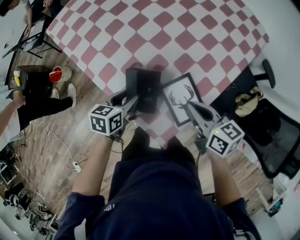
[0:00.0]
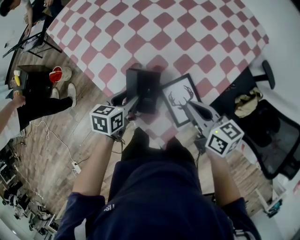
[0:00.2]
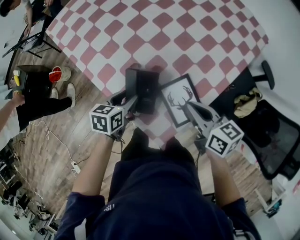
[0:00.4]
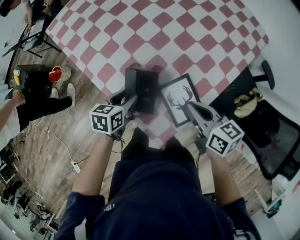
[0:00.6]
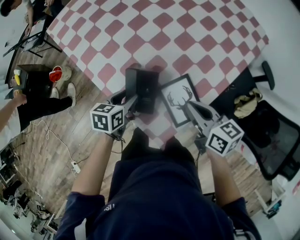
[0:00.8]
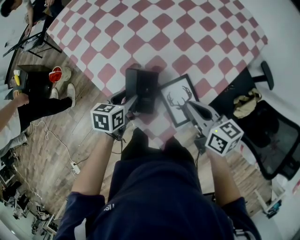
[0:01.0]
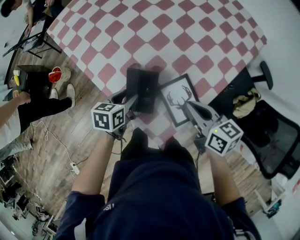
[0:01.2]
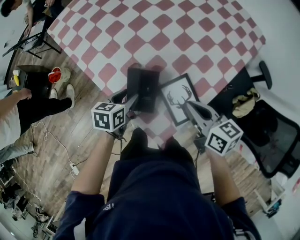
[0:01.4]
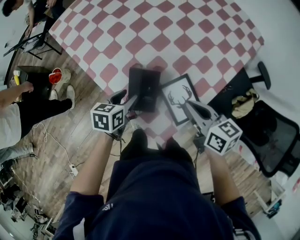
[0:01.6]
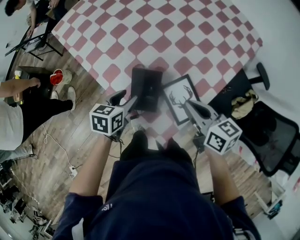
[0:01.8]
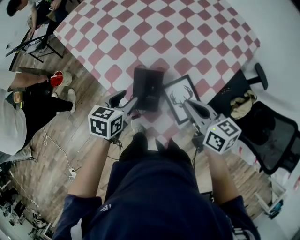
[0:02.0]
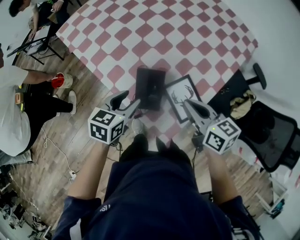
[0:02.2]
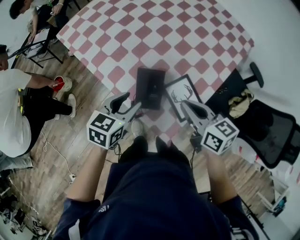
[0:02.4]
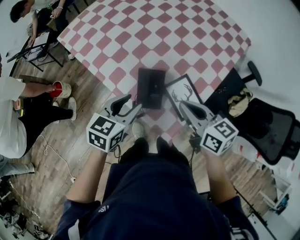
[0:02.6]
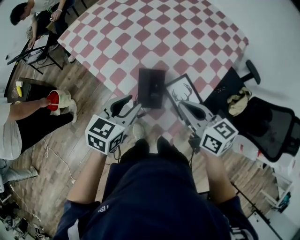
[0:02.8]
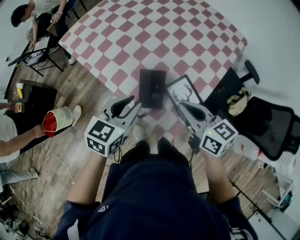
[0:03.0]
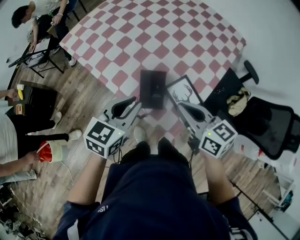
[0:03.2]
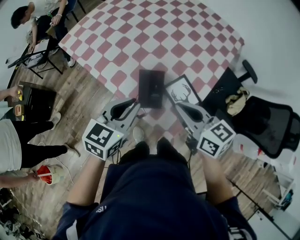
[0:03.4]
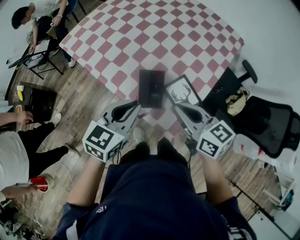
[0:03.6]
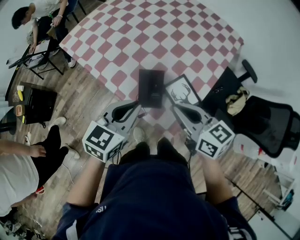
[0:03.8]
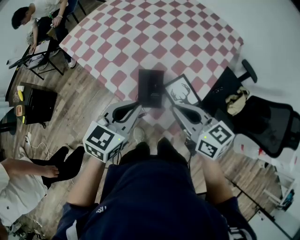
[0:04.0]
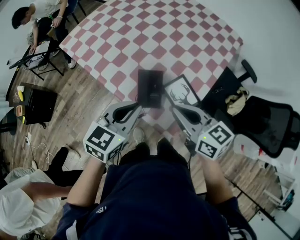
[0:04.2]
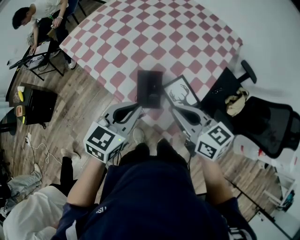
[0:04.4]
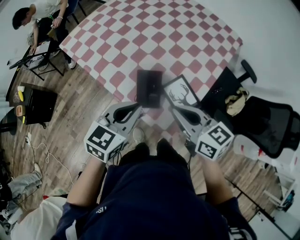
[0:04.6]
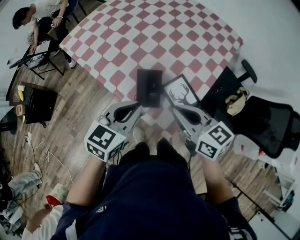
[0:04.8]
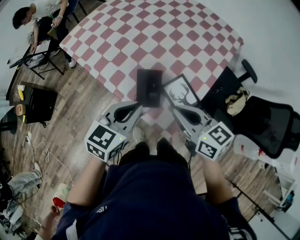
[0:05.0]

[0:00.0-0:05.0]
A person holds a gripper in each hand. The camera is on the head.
0.0 to 1.6 s: There are only small adjustments of the grippers.
1.6 to 3.4 s: The right gripper is displaced upward, to the left and backward by approximately 15 cm, while the left gripper is displaced upward by about 20 cm, turns by approximately 40 degrees, and closes its fingers.
3.4 to 5.0 s: The grippers stay close to where they were, moving slightly.

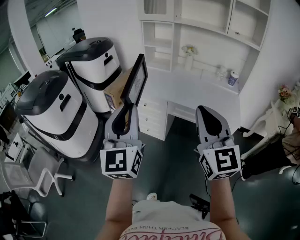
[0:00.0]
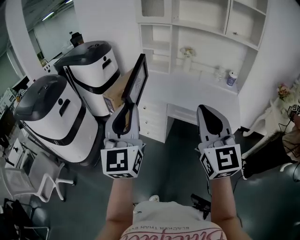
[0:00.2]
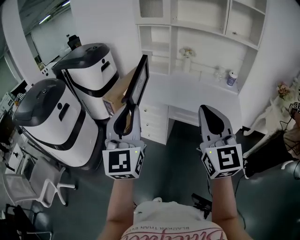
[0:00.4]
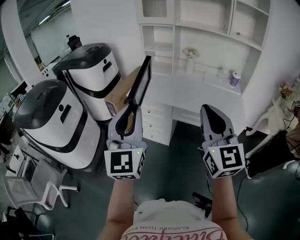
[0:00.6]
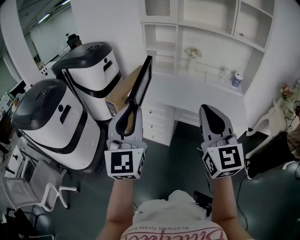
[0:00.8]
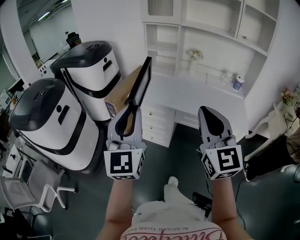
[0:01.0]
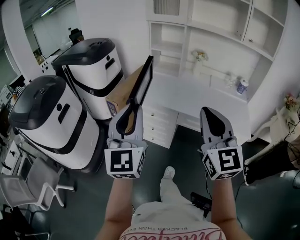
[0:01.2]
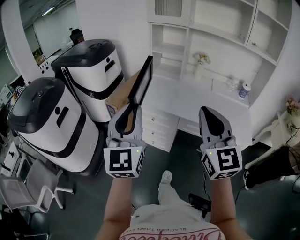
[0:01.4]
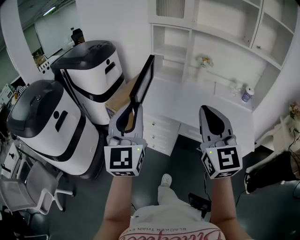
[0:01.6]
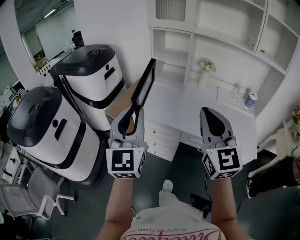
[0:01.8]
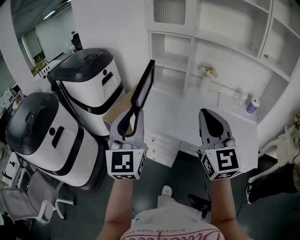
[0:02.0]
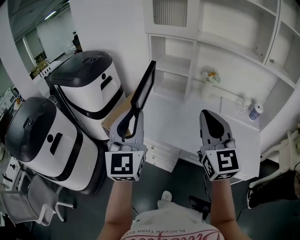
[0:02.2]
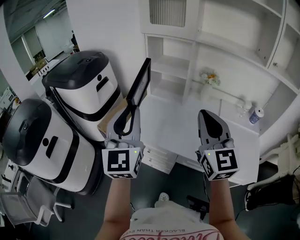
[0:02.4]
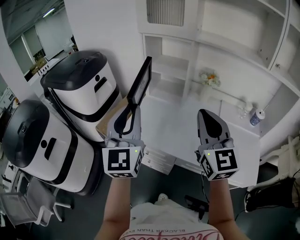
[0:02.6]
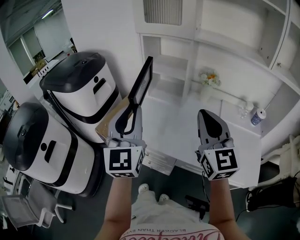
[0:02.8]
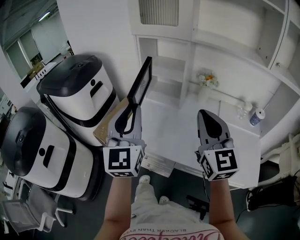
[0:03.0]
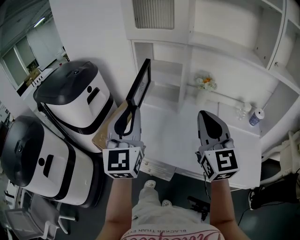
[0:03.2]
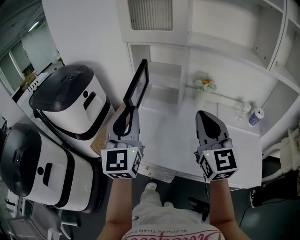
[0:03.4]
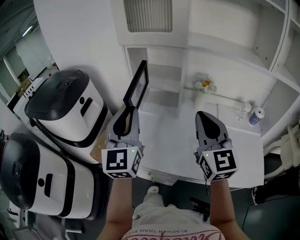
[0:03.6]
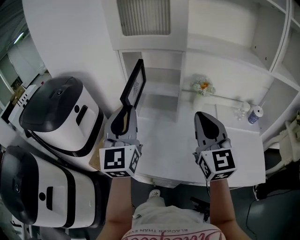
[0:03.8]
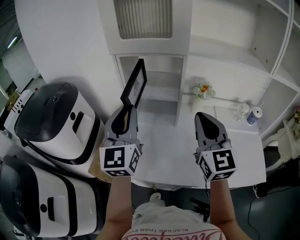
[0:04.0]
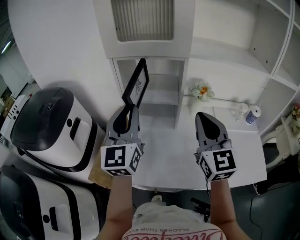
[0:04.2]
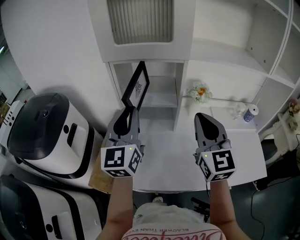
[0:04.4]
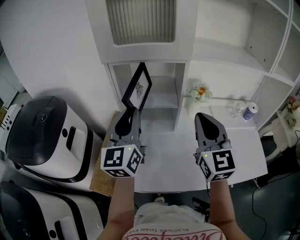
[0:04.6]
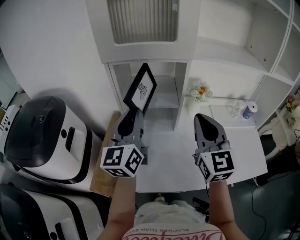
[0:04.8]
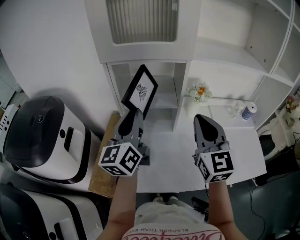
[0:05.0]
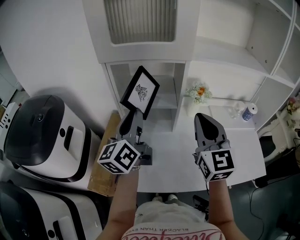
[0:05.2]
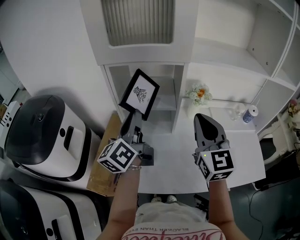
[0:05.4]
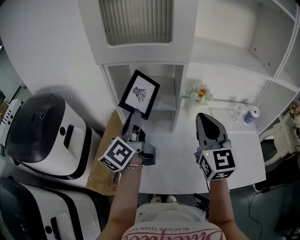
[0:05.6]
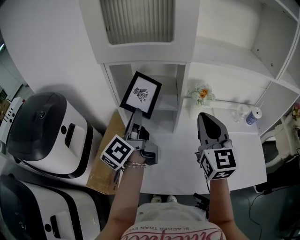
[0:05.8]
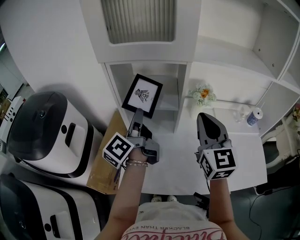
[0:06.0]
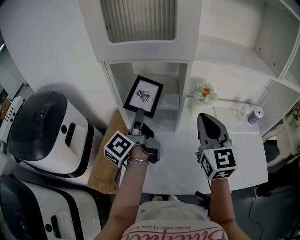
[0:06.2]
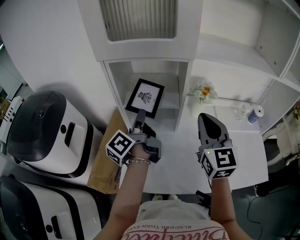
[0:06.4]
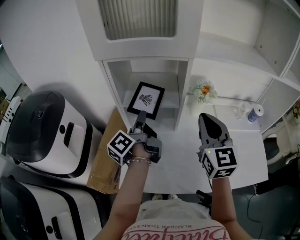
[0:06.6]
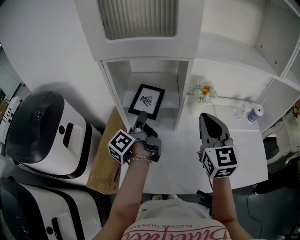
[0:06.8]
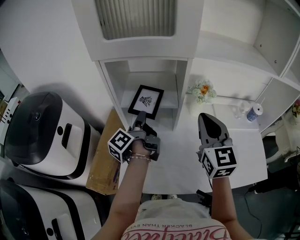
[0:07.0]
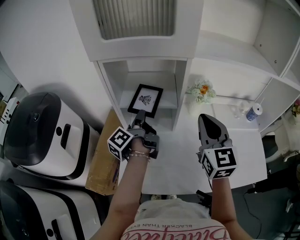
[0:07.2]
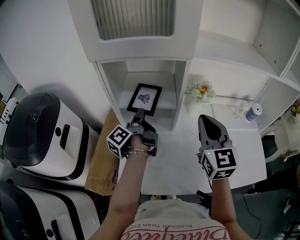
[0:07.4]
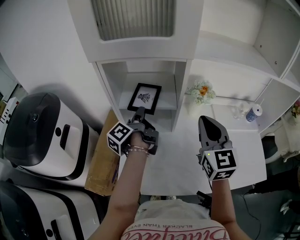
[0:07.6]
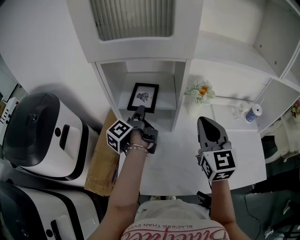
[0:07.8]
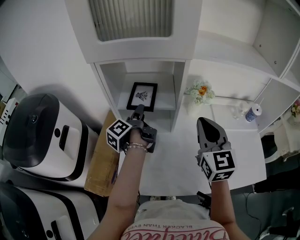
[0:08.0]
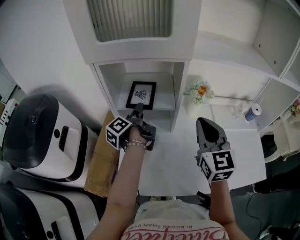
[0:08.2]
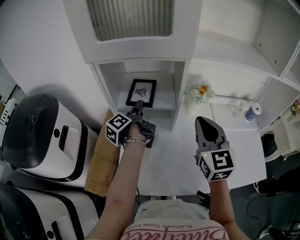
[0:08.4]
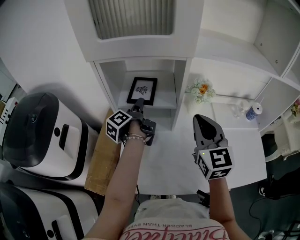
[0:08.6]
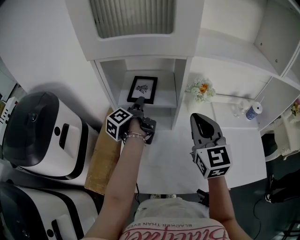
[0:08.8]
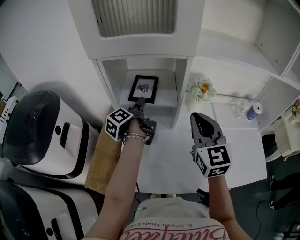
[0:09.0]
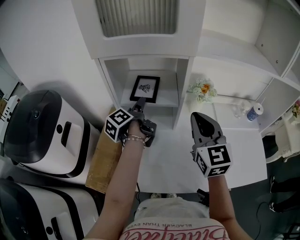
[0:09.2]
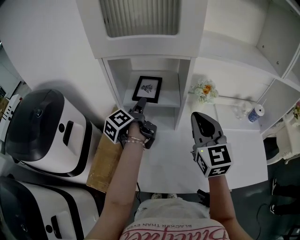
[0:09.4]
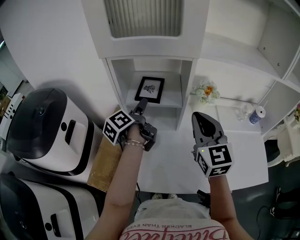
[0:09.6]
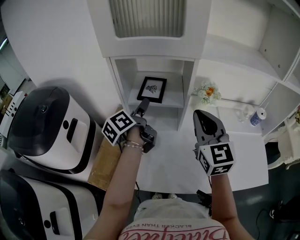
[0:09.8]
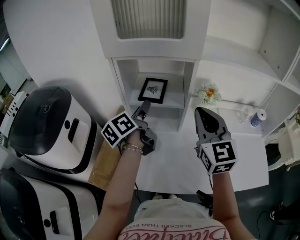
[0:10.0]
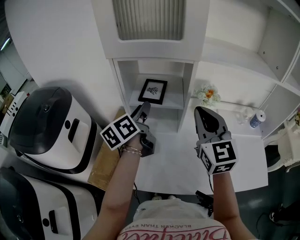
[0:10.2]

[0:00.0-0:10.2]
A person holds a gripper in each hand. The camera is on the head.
0.0 to 1.4 s: Both grippers move forward and to the left, roughly 15 cm.
1.4 to 3.0 s: Both grippers move forward, approximately 30 cm.
3.0 to 4.4 s: The two grippers go about 20 cm forward. The left gripper swivels about 20 degrees.
4.4 to 5.8 s: The right gripper moves roughly 5 cm, while the left gripper shifts approximately 10 cm downward and forward, and rolls counterclockwise, seen from behind, by about 60 degrees.
5.8 to 7.2 s: The left gripper goes approximately 10 cm downward and forward, and rotates about 30 degrees.
7.2 to 8.8 s: The left gripper heads forward, covering approximately 5 cm, and opens.
8.8 to 10.2 s: The left gripper heads upward and backward, covering approximately 15 cm, turns by approximately 40 degrees, and closes its fingers, while the right gripper heads upward, covering about 5 cm.

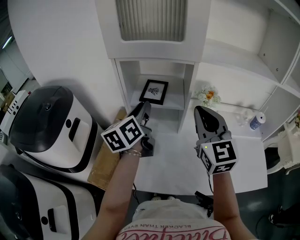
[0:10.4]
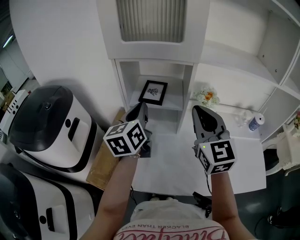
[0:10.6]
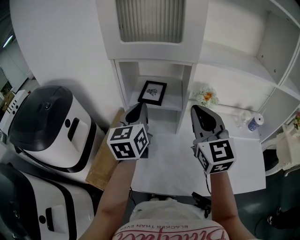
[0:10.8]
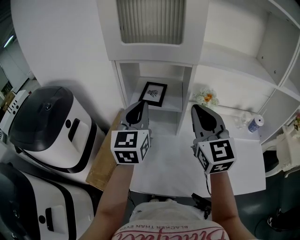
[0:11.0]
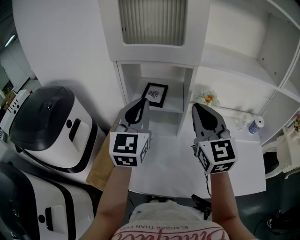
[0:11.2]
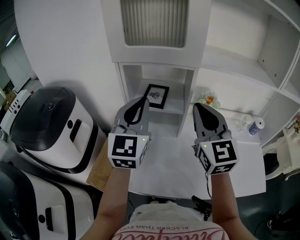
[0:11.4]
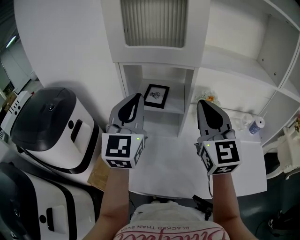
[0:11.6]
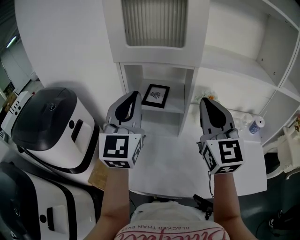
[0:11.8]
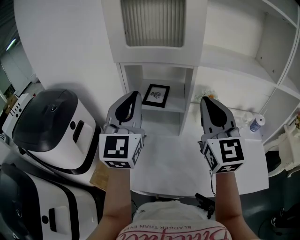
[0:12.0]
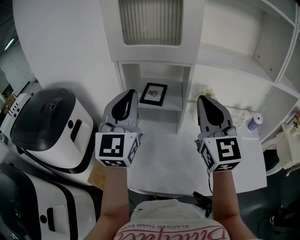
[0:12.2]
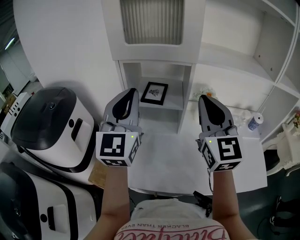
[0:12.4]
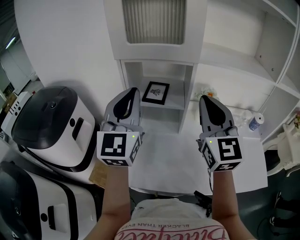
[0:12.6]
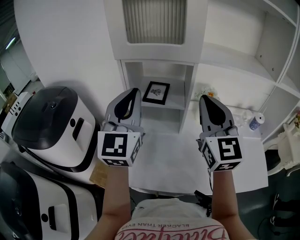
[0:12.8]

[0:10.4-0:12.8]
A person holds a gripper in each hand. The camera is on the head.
10.4 to 11.6 s: The left gripper shifts about 15 cm upward and backward, and twists some 50 degrees clockwise, seen from behind. The right gripper is displaced upward by approximately 5 cm.
11.6 to 12.8 s: The grippers stay close to where they were, moving slightly.

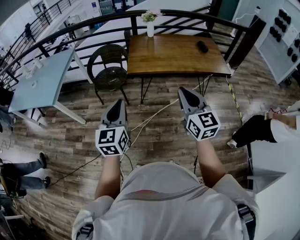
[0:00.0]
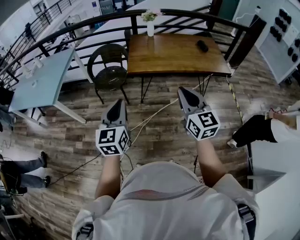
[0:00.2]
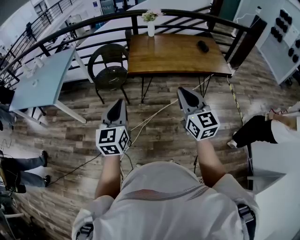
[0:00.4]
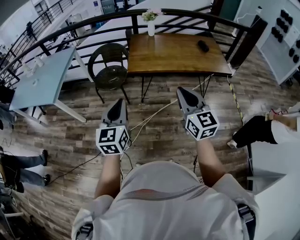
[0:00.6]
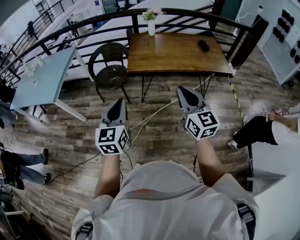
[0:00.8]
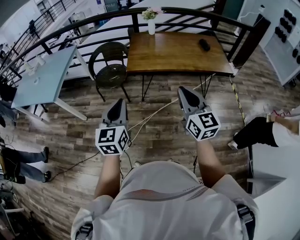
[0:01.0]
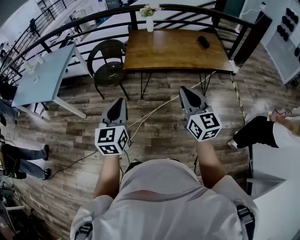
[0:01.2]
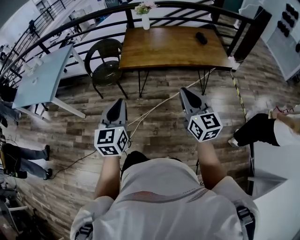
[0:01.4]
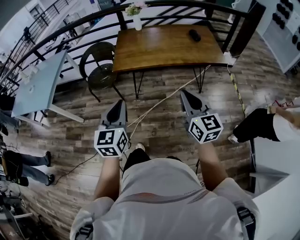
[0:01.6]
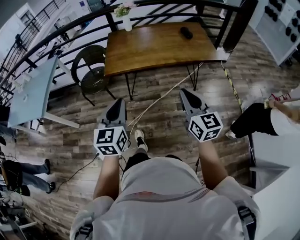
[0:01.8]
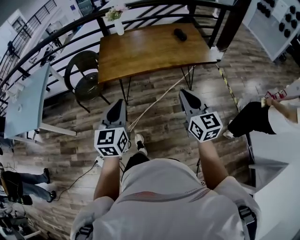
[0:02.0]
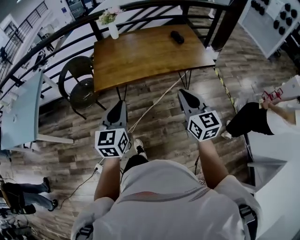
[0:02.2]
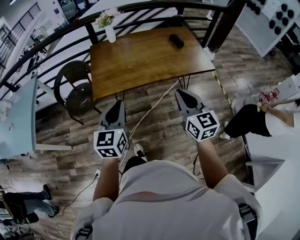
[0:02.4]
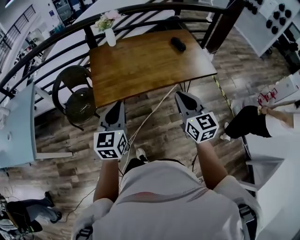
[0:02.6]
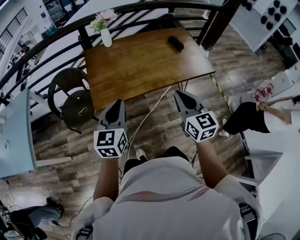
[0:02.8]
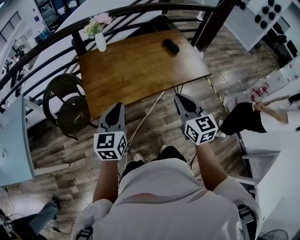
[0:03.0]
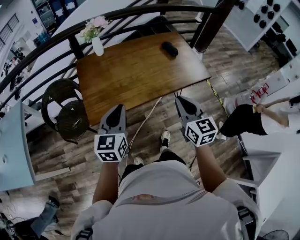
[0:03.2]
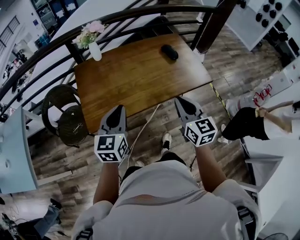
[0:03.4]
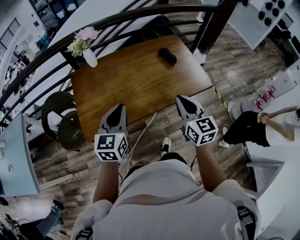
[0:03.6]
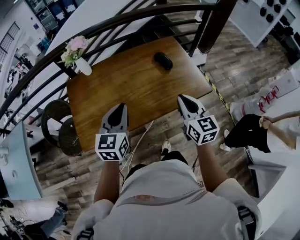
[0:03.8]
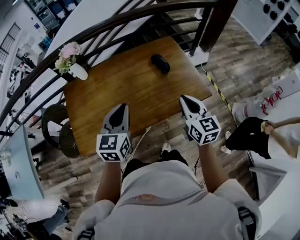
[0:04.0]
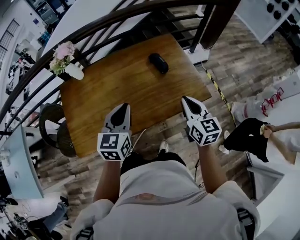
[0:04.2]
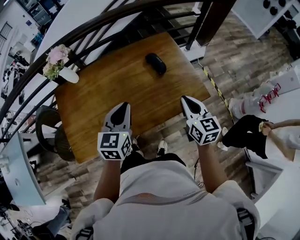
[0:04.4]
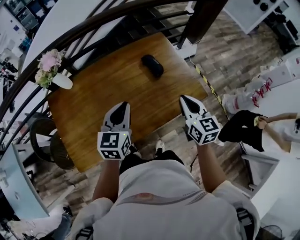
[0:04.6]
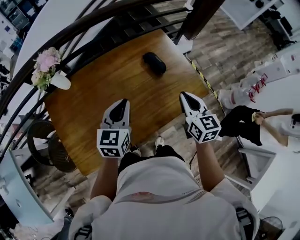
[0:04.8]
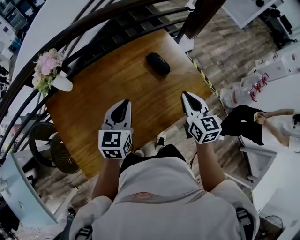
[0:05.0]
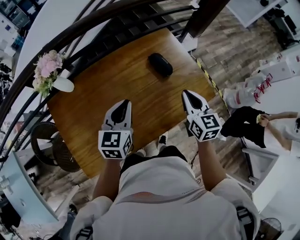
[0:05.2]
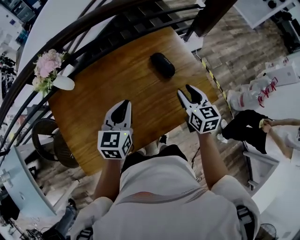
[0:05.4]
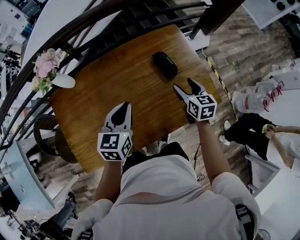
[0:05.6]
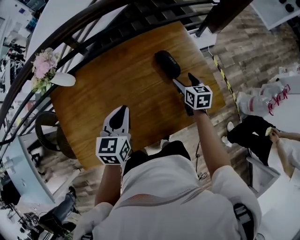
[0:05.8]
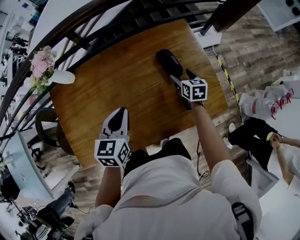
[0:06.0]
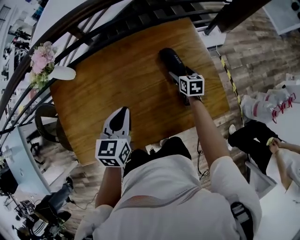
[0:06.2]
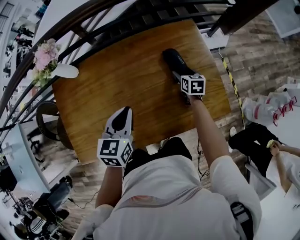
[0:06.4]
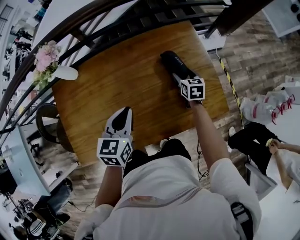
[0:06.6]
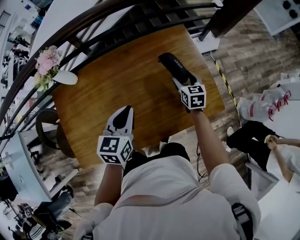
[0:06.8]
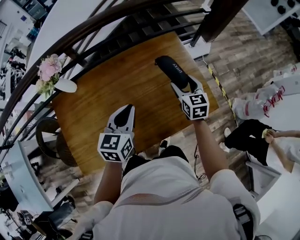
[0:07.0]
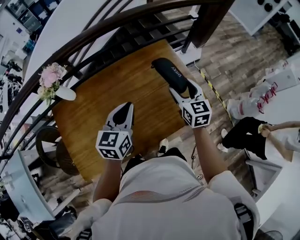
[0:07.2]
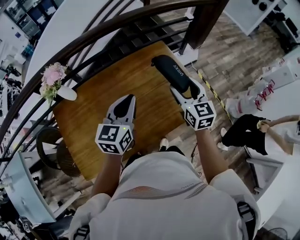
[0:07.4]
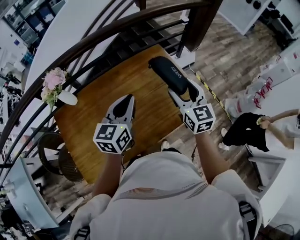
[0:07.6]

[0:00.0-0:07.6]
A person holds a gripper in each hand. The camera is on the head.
0.0 to 1.6 s: Both grippers move to the right, about 15 cm.
1.6 to 3.0 s: The grippers both shift forward by roughly 30 cm. The left gripper changes its angle by some 20 degrees, while the right gripper swivels roughly 20 degrees.
3.0 to 4.6 s: The grippers both shift forward and to the right by some 40 cm.
4.6 to 6.0 s: The right gripper goes about 30 cm downward and forward, changes its angle by some 20 degrees, and opens; the left gripper travels downward and forward by about 10 cm.
6.0 to 7.6 s: The right gripper shifts approximately 35 cm upward and backward, and tilts its fingers some 30 degrees upward, while the left gripper travels upward and to the right by some 15 cm, and swivels approximately 30 degrees.
